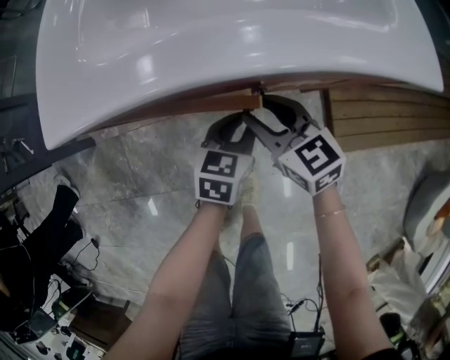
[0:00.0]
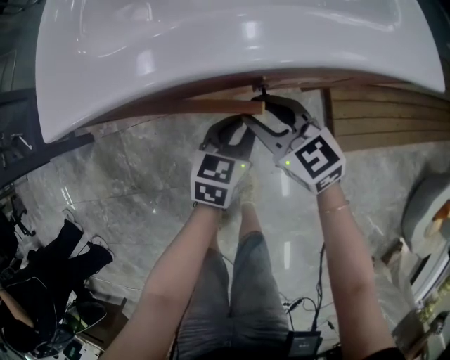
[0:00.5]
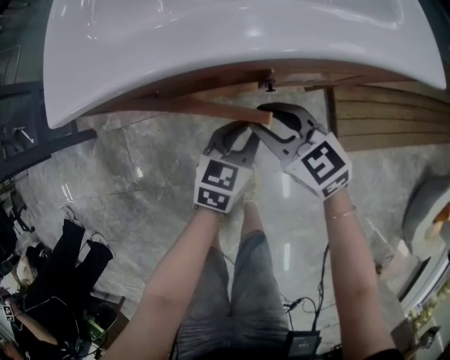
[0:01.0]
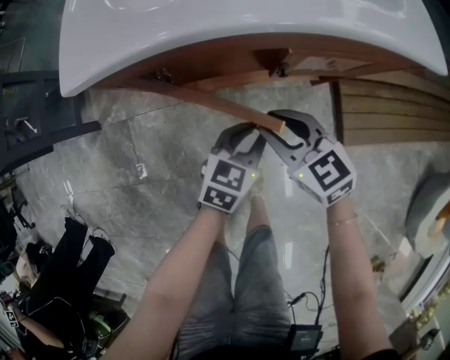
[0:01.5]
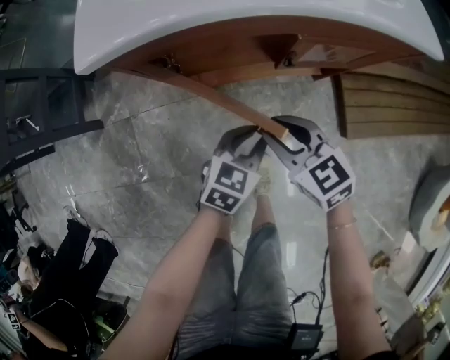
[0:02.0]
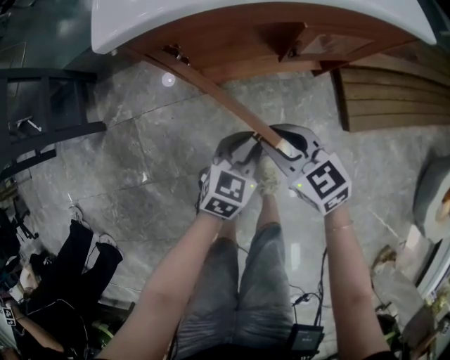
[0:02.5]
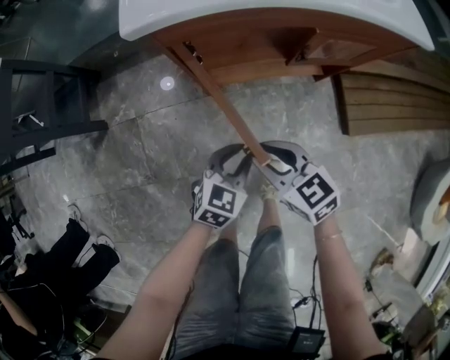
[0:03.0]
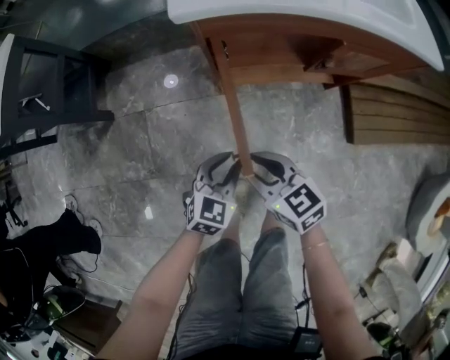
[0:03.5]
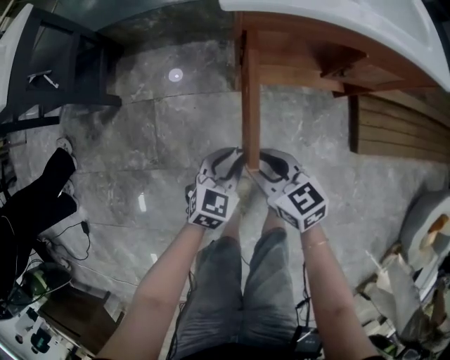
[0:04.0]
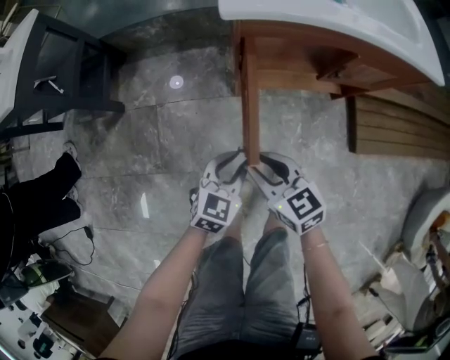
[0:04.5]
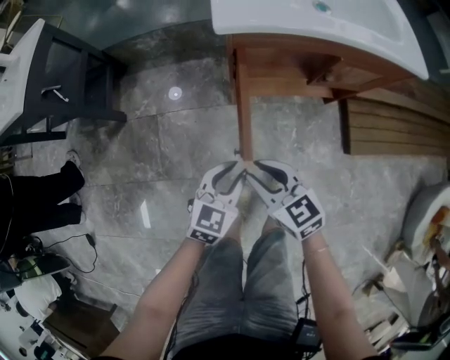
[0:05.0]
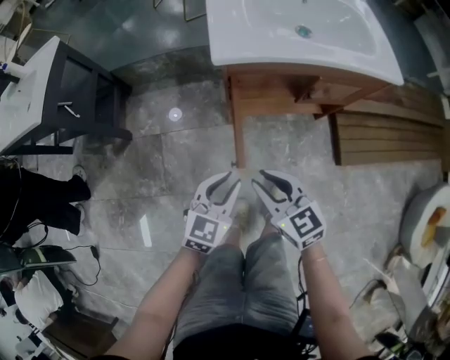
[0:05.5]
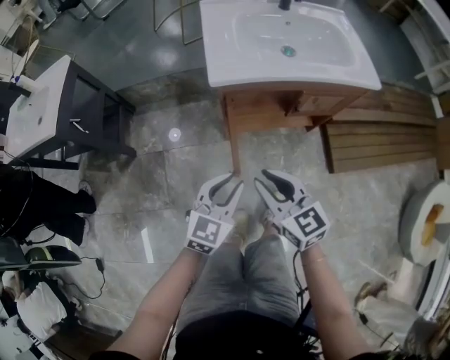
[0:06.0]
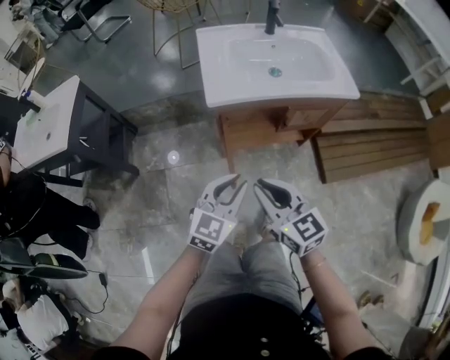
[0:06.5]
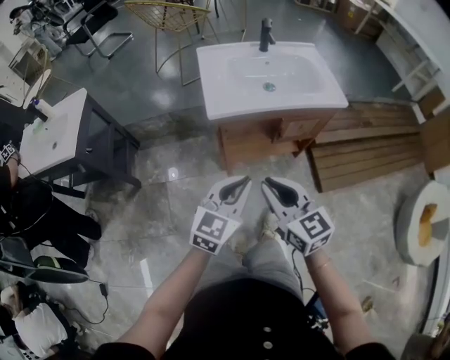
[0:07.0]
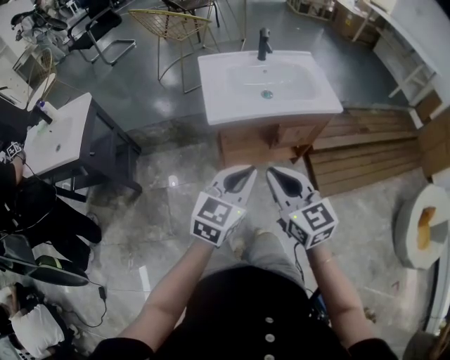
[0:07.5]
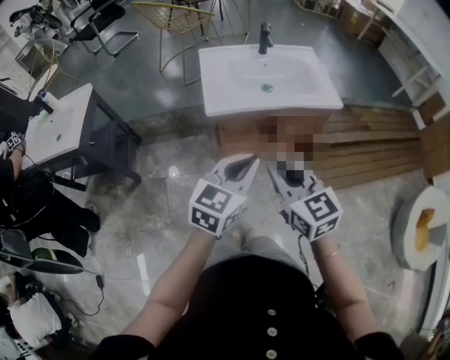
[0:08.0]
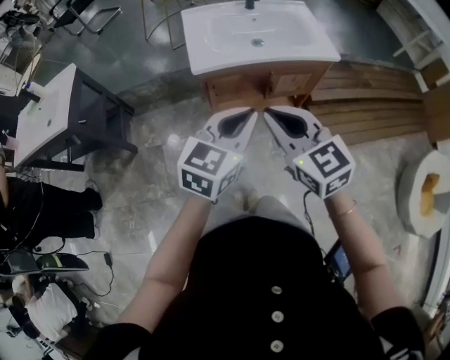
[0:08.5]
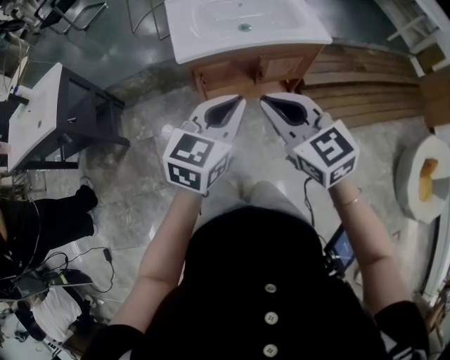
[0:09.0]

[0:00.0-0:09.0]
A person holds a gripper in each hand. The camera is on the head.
0:00.0 to 0:02.0: The two grippers go approximately 15 cm backward and to the left.
0:02.0 to 0:04.5: The grippers both shift to the left and backward by roughly 20 cm.
0:04.5 to 0:07.0: Both grippers move upward, roughly 35 cm. The right gripper turns by some 30 degrees. Meanwhile the left gripper rotates roughly 20 degrees.
0:07.0 to 0:09.0: Both grippers travel together upward and to the right, approximately 10 cm.

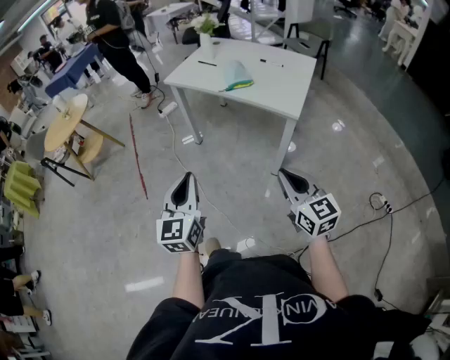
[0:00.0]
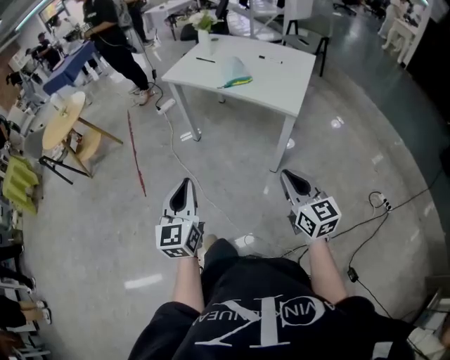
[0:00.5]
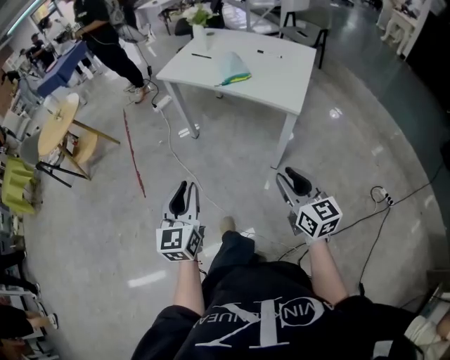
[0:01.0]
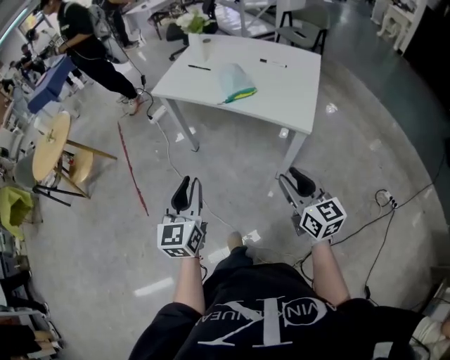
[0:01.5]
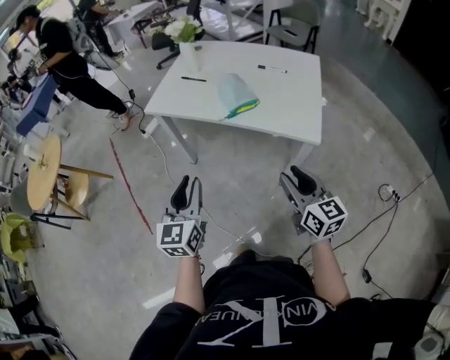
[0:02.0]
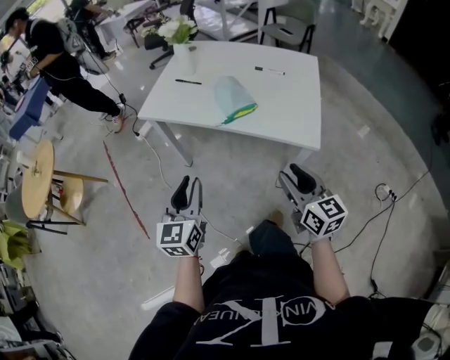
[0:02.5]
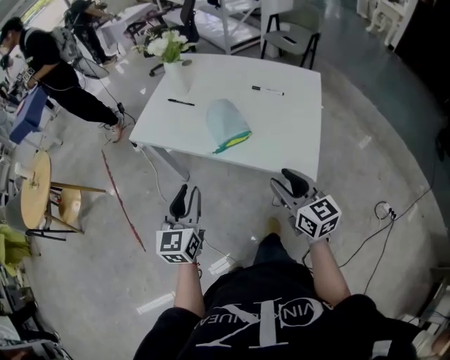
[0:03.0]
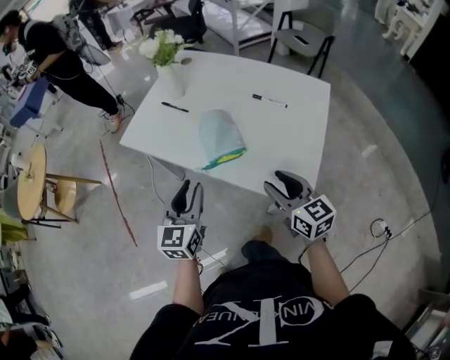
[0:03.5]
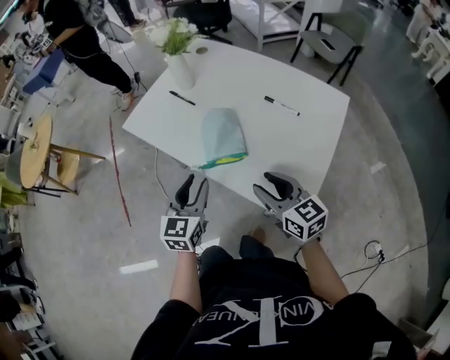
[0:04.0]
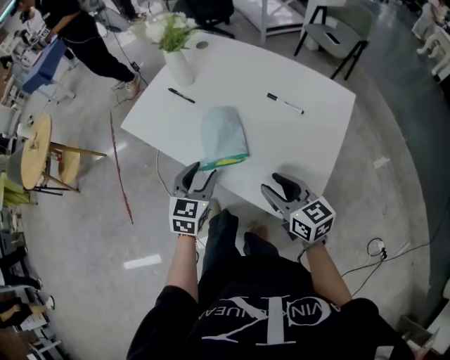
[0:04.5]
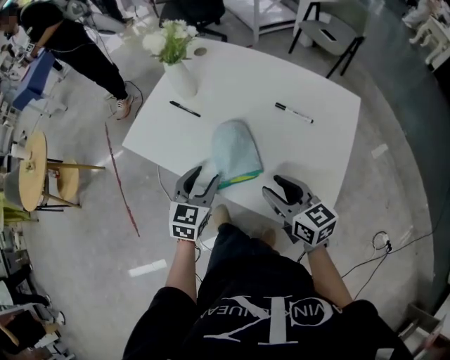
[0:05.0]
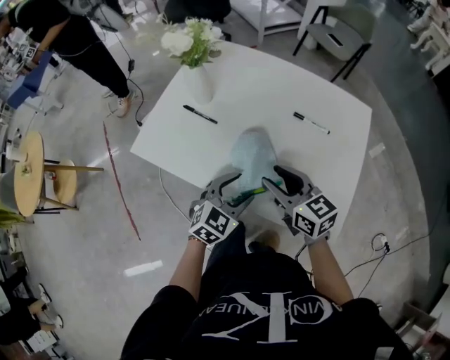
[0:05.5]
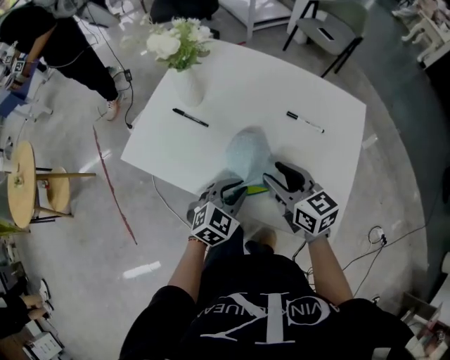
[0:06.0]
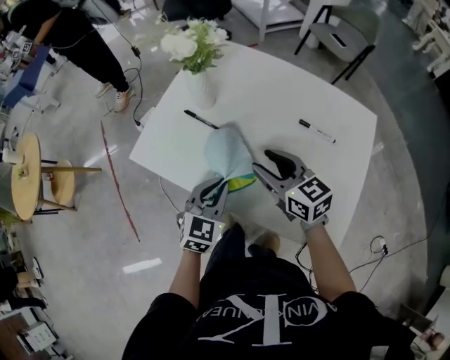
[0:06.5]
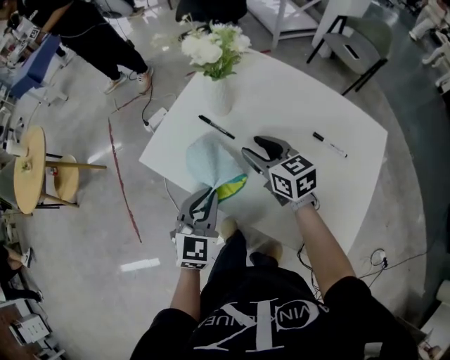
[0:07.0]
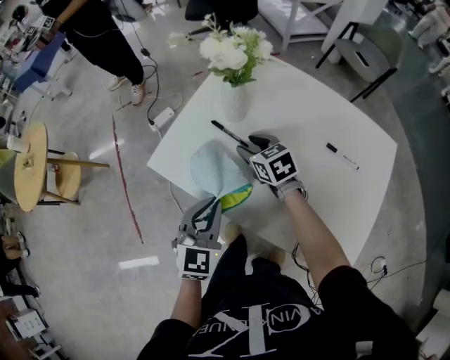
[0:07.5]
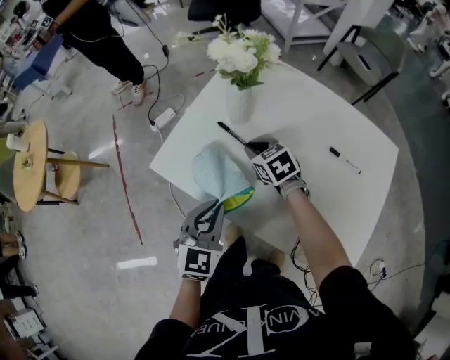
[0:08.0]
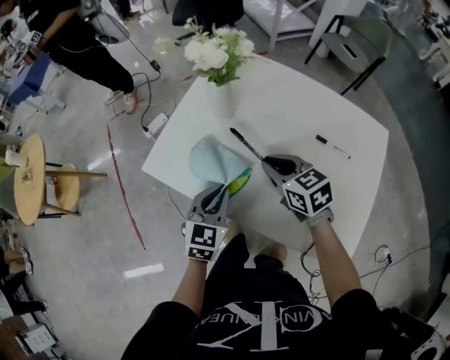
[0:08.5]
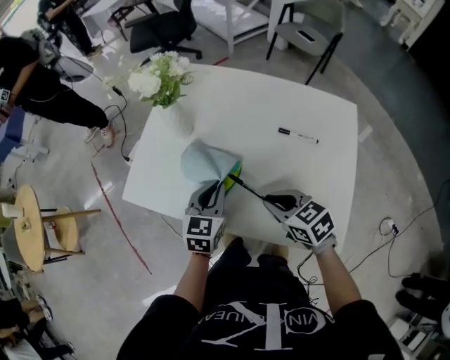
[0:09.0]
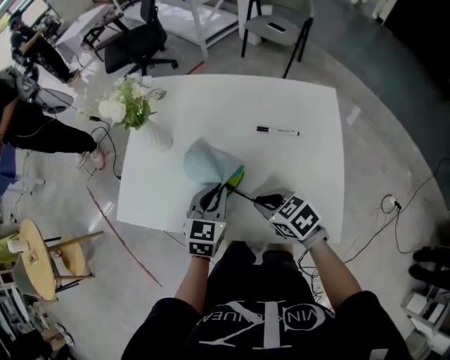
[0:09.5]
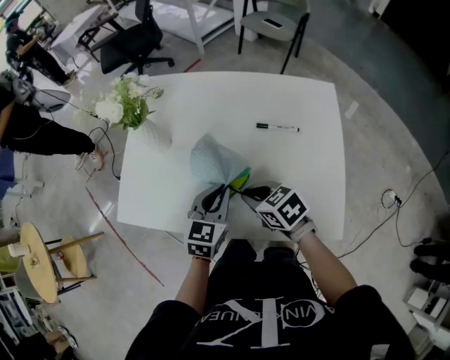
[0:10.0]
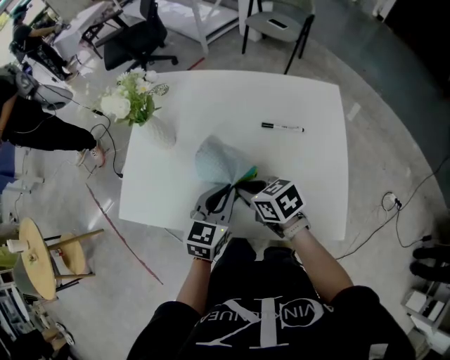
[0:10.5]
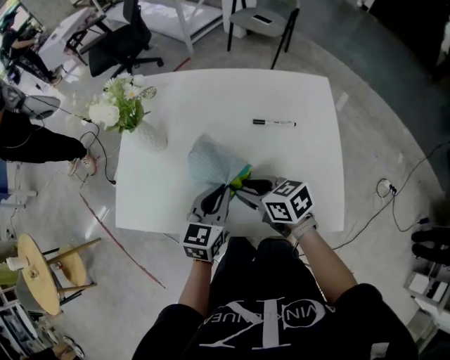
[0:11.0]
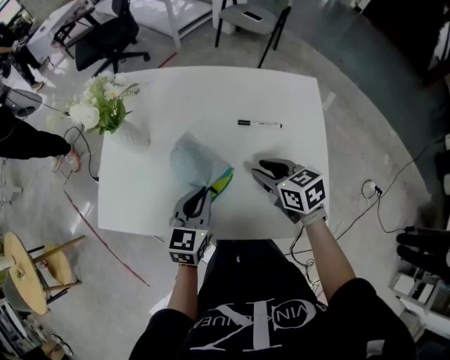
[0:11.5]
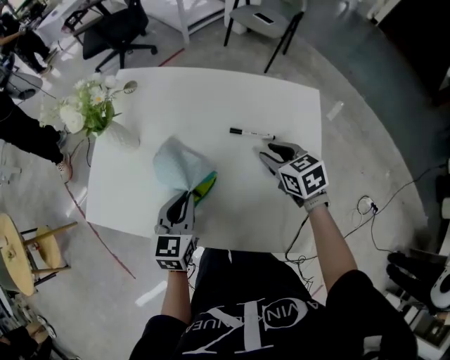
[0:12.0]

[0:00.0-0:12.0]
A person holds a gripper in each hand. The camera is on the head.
0:00.0 to 0:02.0: The grippers both shift forward by about 25 cm. The right gripper opens up.
0:02.0 to 0:04.0: The right gripper travels forward by some 25 cm, and changes its angle by roughly 30 degrees; the left gripper travels forward and to the right by approximately 30 cm.
0:04.0 to 0:06.0: The right gripper is displaced forward and to the left by approximately 15 cm. Meanwhile the left gripper heads forward and downward, covering approximately 10 cm, rotates about 50 degrees, and opens, then closes once more.
0:06.0 to 0:08.0: The left gripper travels to the left and forward by some 20 cm, and rotates about 30 degrees. Meanwhile the right gripper is displaced forward, to the left and downward by roughly 30 cm, turns by about 30 degrees, and closes.
0:08.0 to 0:10.0: The right gripper moves backward and to the right, some 25 cm, and changes its angle by roughly 20 degrees. The left gripper shifts some 20 cm to the right, and turns by approximately 30 degrees.
0:10.0 to 0:12.0: The right gripper goes approximately 20 cm to the right and forward, and opens up.

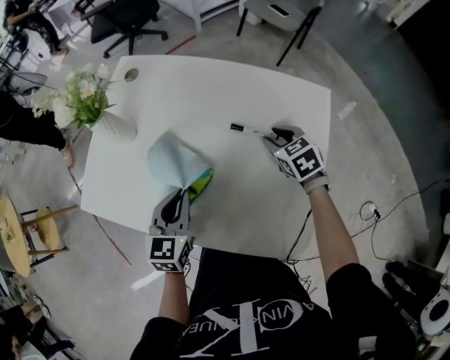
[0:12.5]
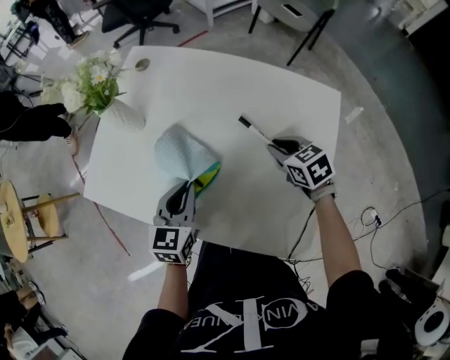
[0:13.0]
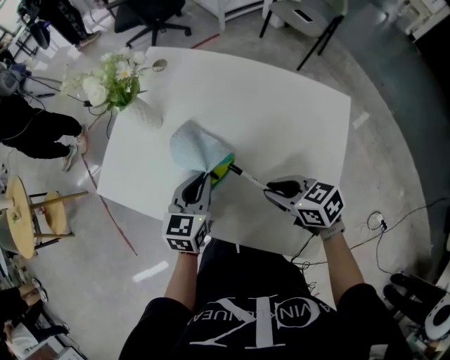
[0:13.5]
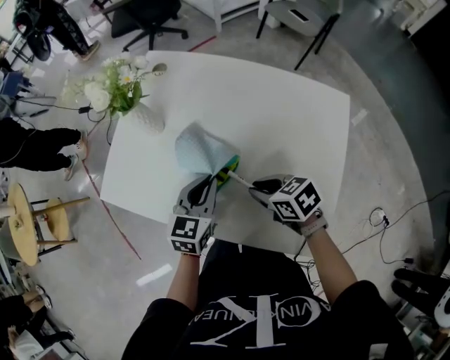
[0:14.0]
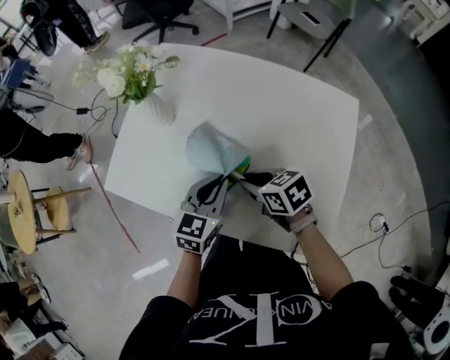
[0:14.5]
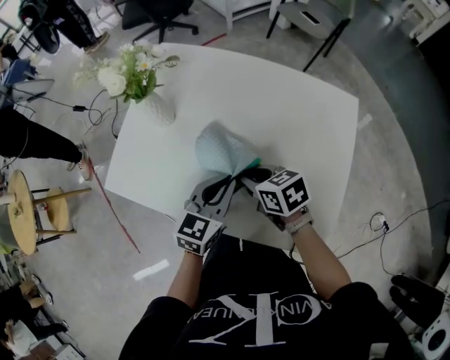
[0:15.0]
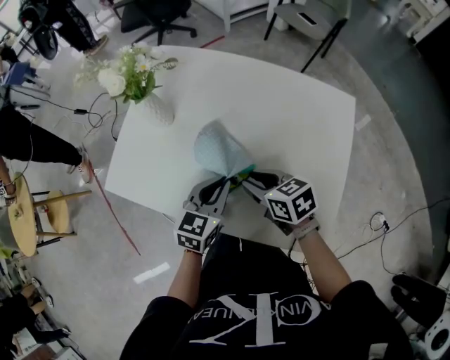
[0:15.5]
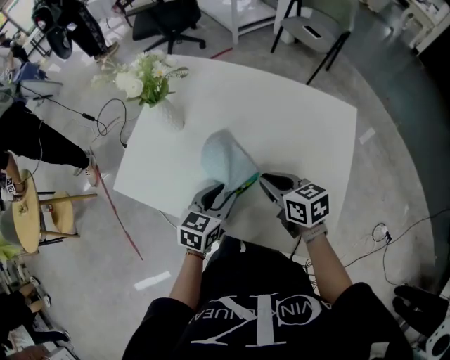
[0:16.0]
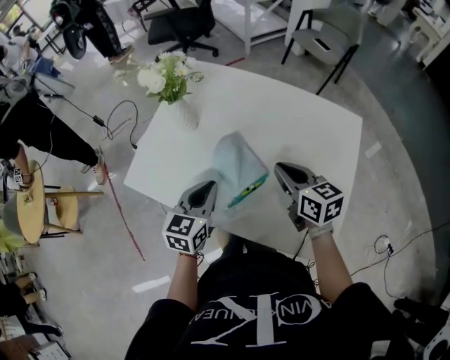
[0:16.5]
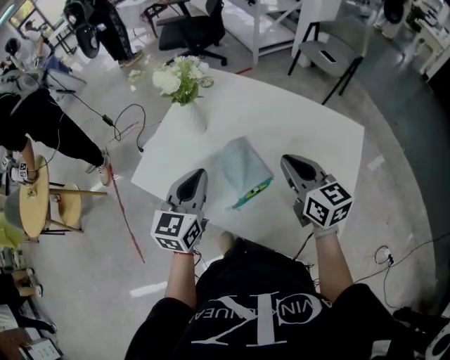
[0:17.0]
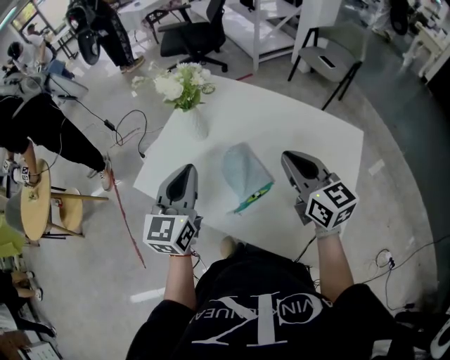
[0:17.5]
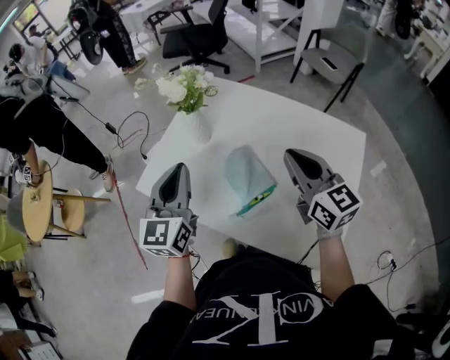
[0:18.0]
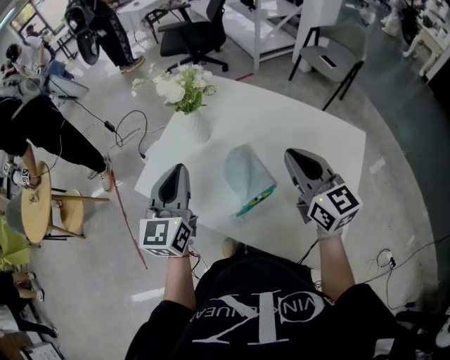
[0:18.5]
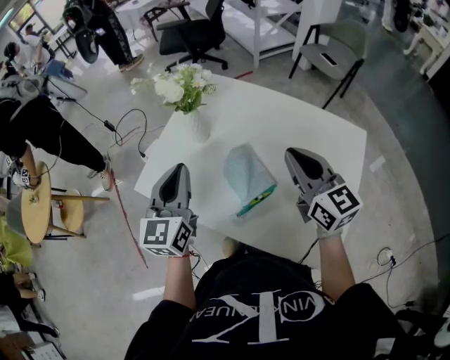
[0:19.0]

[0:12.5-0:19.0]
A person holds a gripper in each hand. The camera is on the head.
0:12.5 to 0:14.5: The right gripper shifts about 20 cm to the left, and rotates approximately 30 degrees.
0:14.5 to 0:17.0: The right gripper is displaced upward by some 15 cm, and turns by roughly 40 degrees. Meanwhile the left gripper shifts roughly 15 cm upward and to the left, swivels roughly 20 degrees, and opens and closes again.
0:17.0 to 0:19.0: The two grippers go some 5 cm upward.
